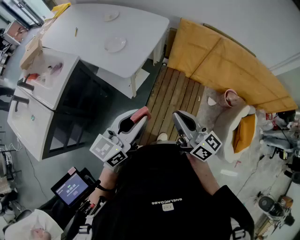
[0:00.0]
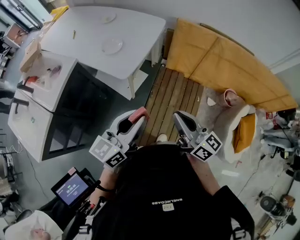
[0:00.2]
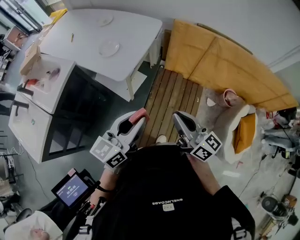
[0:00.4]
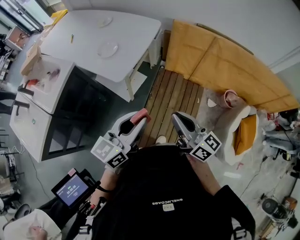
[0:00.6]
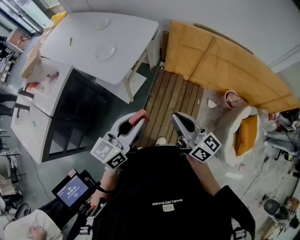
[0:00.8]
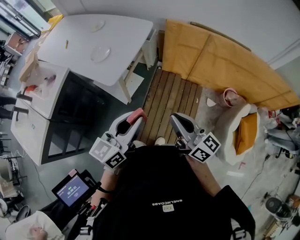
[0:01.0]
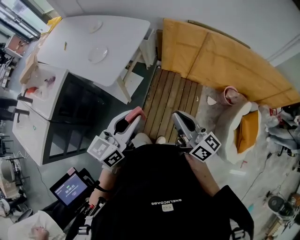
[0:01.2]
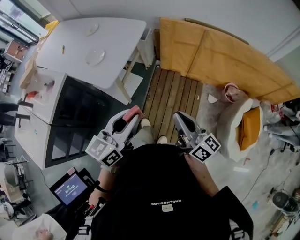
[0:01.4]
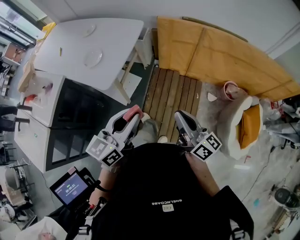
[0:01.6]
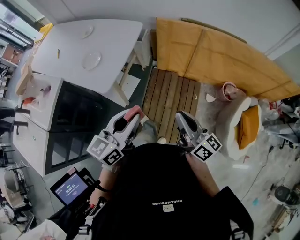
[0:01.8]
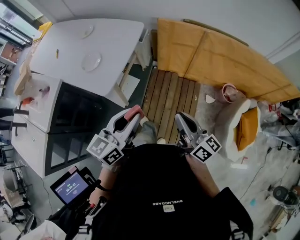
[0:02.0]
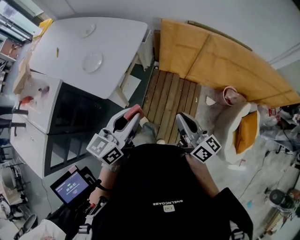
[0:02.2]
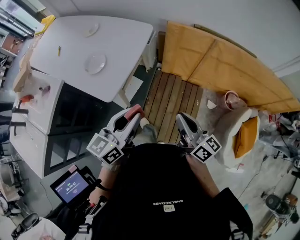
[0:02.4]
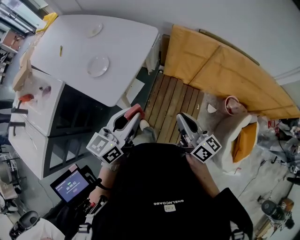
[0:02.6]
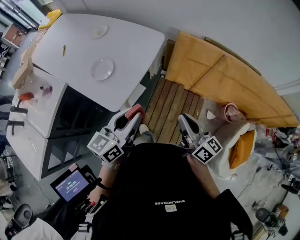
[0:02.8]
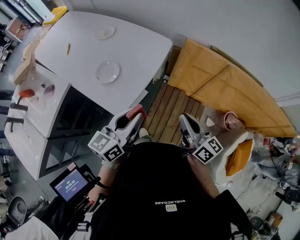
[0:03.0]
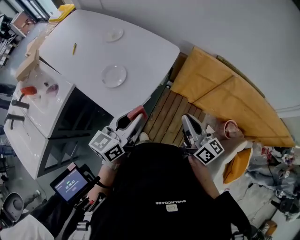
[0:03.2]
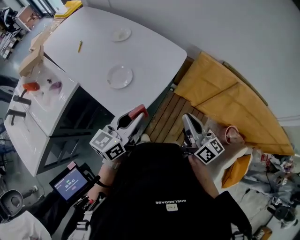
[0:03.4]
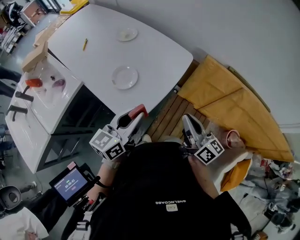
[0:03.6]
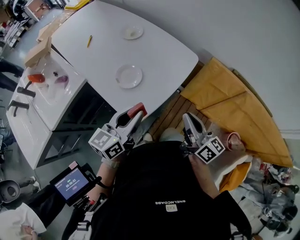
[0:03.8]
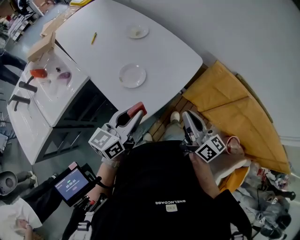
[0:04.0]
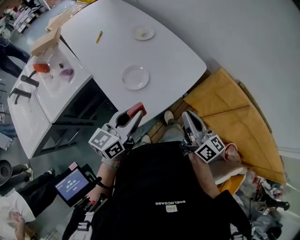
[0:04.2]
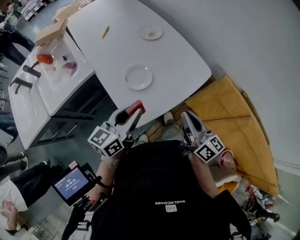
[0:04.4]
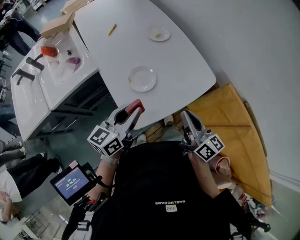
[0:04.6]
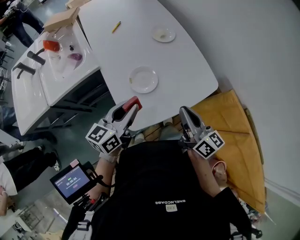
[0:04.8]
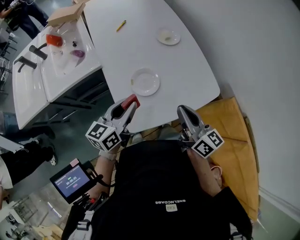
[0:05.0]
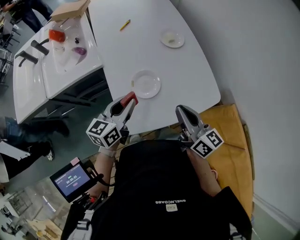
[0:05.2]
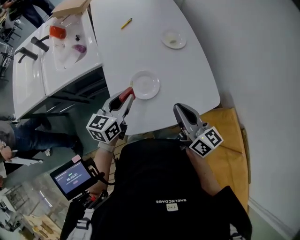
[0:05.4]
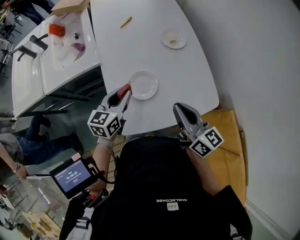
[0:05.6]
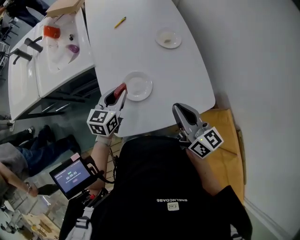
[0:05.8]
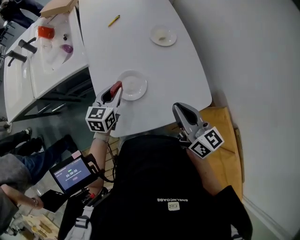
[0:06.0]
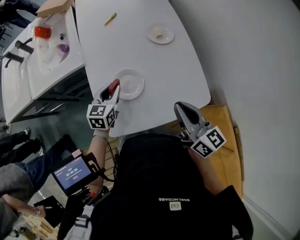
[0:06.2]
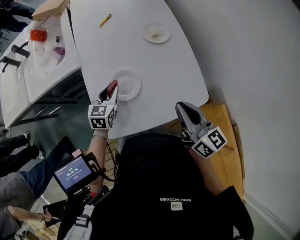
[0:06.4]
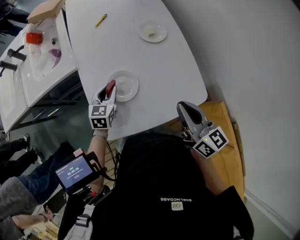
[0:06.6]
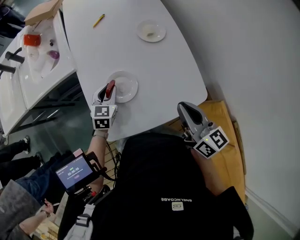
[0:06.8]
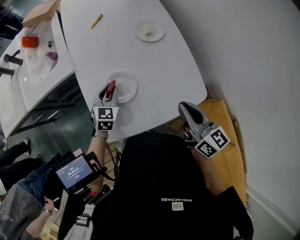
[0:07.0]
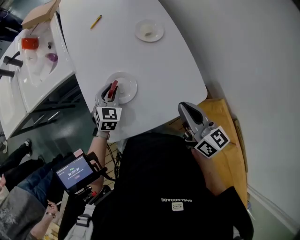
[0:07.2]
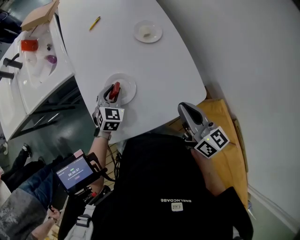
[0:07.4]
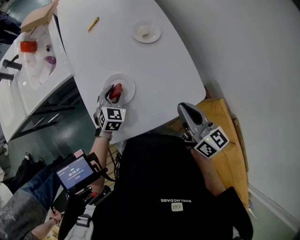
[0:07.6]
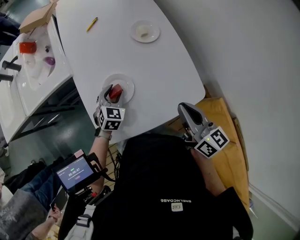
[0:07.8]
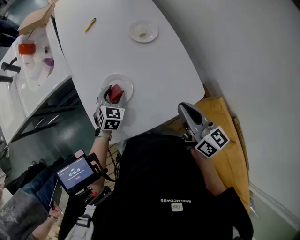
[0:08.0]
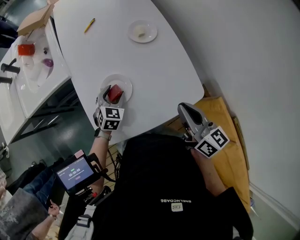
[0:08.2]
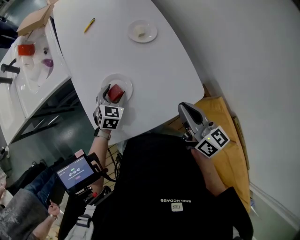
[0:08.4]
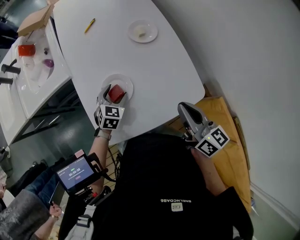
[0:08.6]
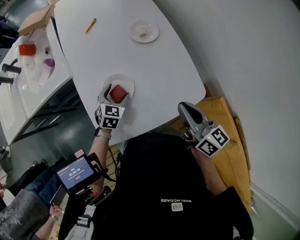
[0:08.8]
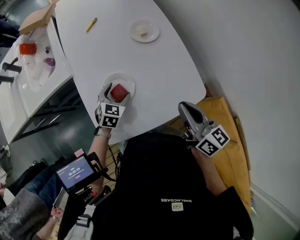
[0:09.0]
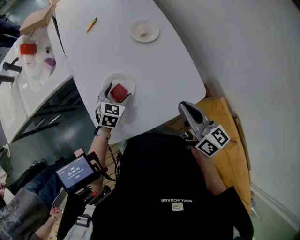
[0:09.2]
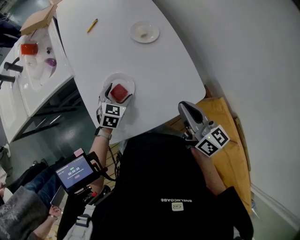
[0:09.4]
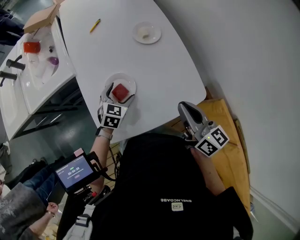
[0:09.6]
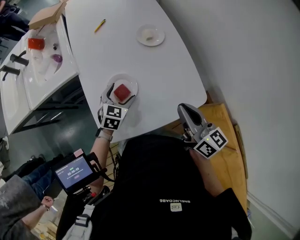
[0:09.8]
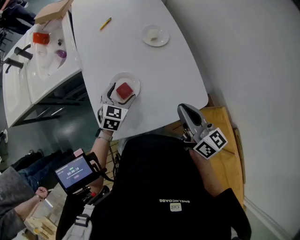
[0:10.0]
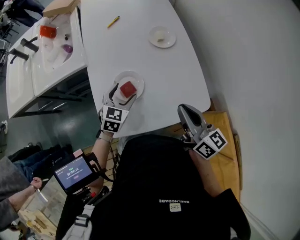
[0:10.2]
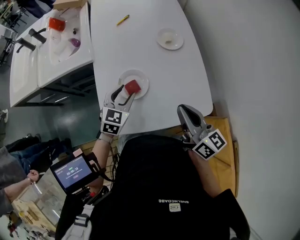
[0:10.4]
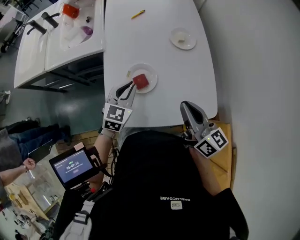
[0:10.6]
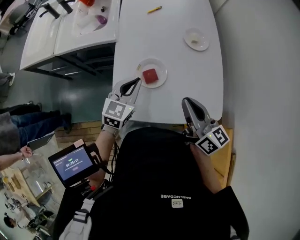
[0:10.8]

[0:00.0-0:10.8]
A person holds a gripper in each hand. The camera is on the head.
0:00.0 to 0:01.6: The left gripper moves to the right and forward, some 15 cm. Meanwhile the right gripper moves to the right and downward, about 15 cm.
0:01.6 to 0:03.0: The grippers both shift forward and to the left by approximately 20 cm.
0:03.0 to 0:04.6: The right gripper moves roughly 20 cm, and rotates approximately 30 degrees. The left gripper moves about 20 cm, and turns by about 30 degrees.
0:04.6 to 0:06.2: The left gripper goes approximately 15 cm to the left, downward and forward, and swivels some 20 degrees. Meanwhile the right gripper heads upward, covering some 10 cm, and rotates approximately 30 degrees.
0:06.2 to 0:07.8: The left gripper goes some 5 cm to the right, and turns by about 30 degrees, while the right gripper heads backward, covering approximately 5 cm.
0:07.8 to 0:09.2: The left gripper opens up.
0:09.2 to 0:10.8: The left gripper moves upward and to the left, roughly 15 cm, changes its angle by approximately 30 degrees, and closes; the right gripper heads to the left and forward, covering about 10 cm, and rotates approximately 20 degrees.

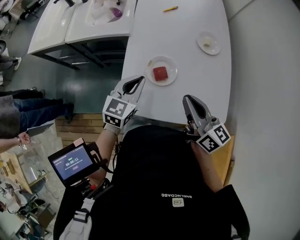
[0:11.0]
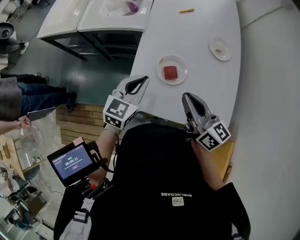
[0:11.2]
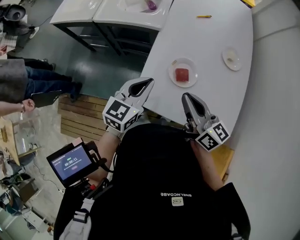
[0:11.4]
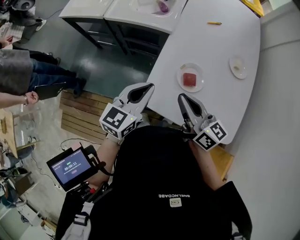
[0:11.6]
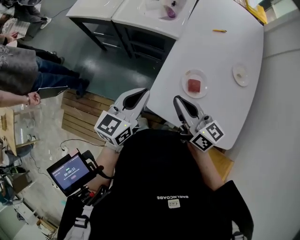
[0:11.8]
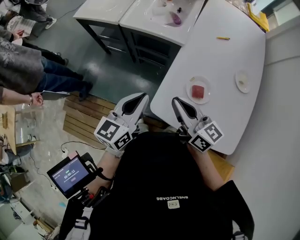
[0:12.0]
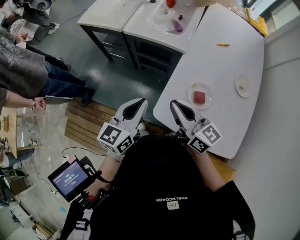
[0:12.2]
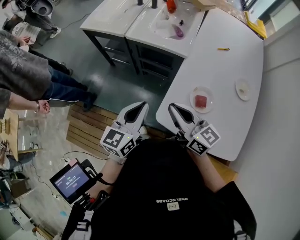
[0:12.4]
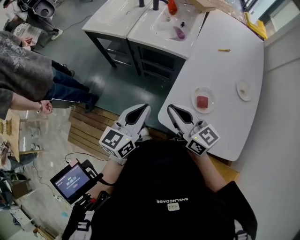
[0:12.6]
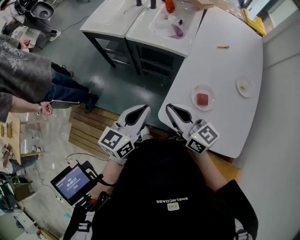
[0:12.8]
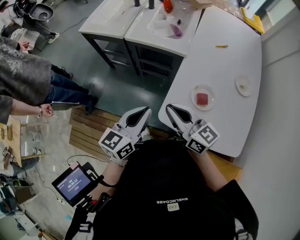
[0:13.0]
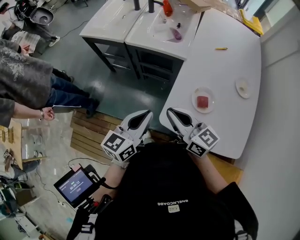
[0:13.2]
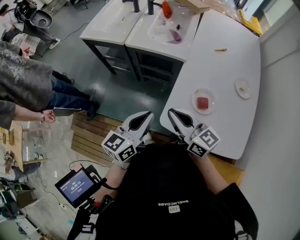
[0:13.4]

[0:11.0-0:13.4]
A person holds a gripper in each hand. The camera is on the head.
0:11.0 to 0:12.2: The two grippers go some 20 cm to the left. The right gripper turns by some 30 degrees; the left gripper changes its angle by about 30 degrees.
0:12.2 to 0:13.4: The grippers make only small movements.

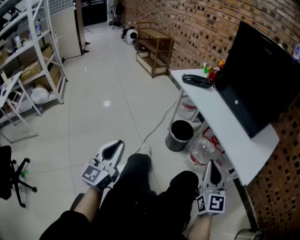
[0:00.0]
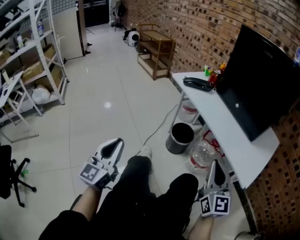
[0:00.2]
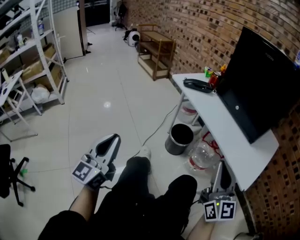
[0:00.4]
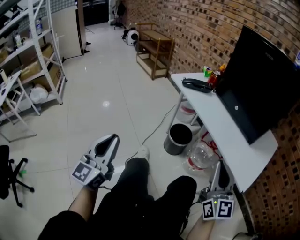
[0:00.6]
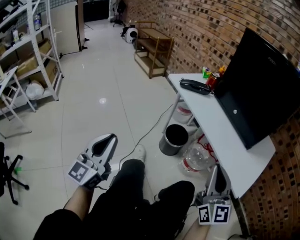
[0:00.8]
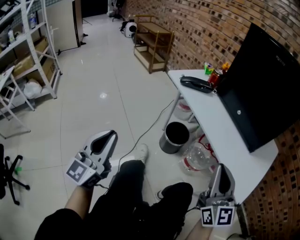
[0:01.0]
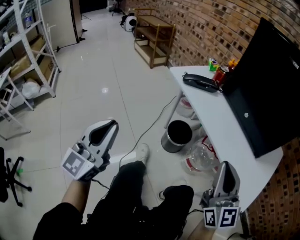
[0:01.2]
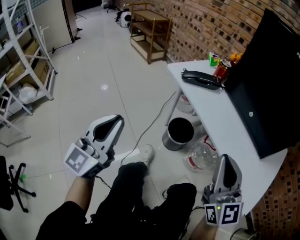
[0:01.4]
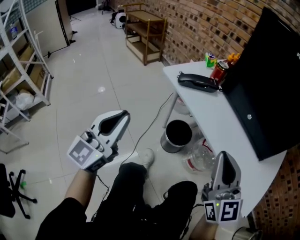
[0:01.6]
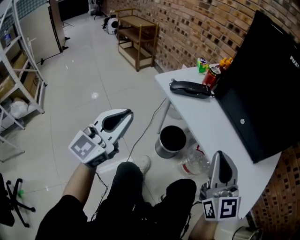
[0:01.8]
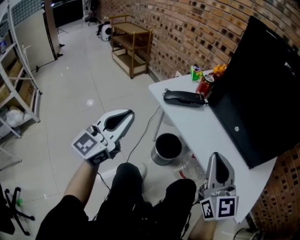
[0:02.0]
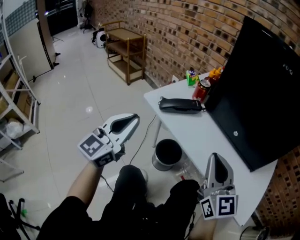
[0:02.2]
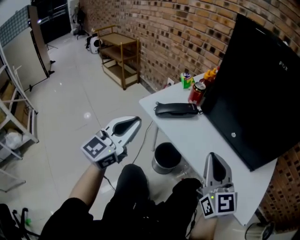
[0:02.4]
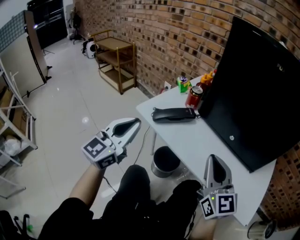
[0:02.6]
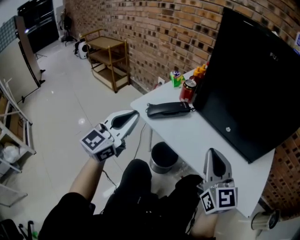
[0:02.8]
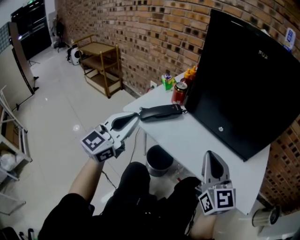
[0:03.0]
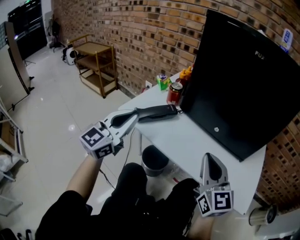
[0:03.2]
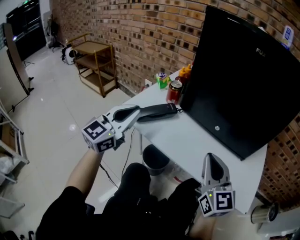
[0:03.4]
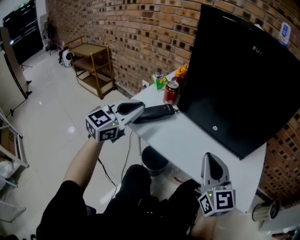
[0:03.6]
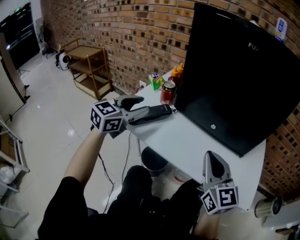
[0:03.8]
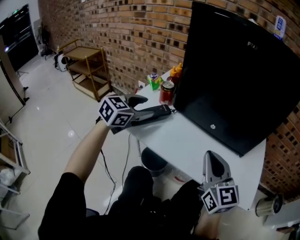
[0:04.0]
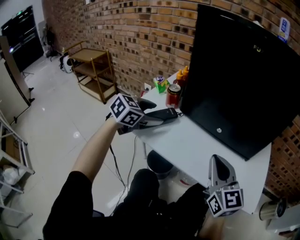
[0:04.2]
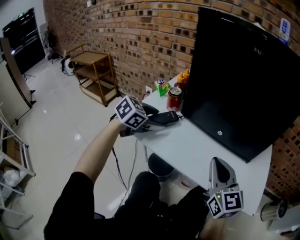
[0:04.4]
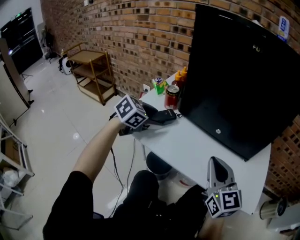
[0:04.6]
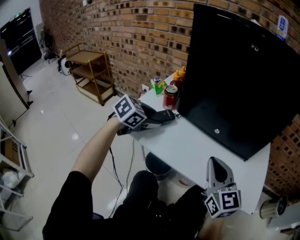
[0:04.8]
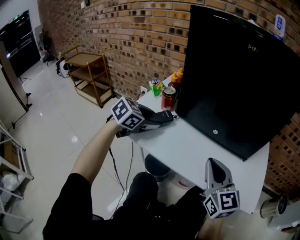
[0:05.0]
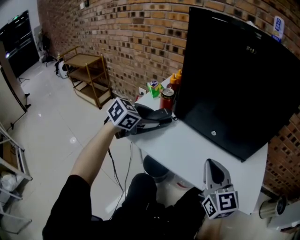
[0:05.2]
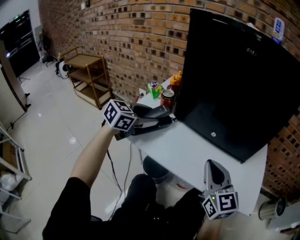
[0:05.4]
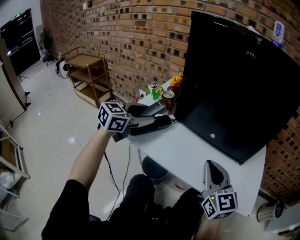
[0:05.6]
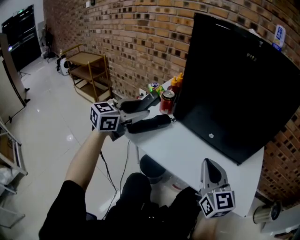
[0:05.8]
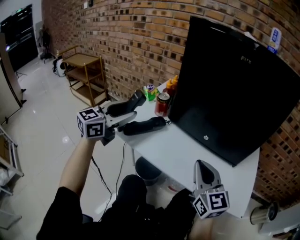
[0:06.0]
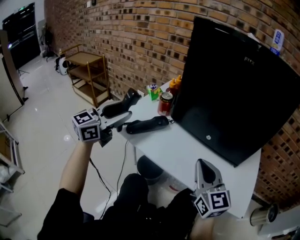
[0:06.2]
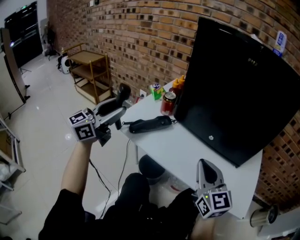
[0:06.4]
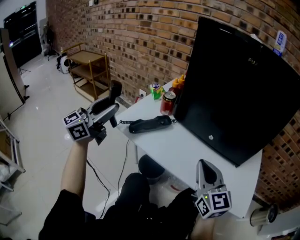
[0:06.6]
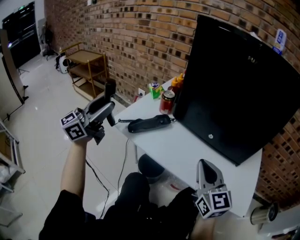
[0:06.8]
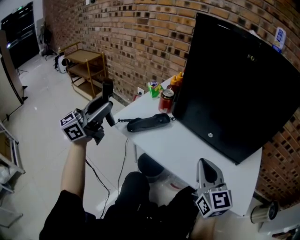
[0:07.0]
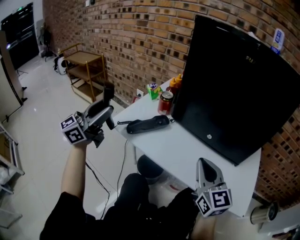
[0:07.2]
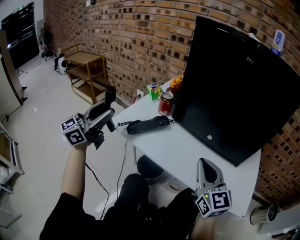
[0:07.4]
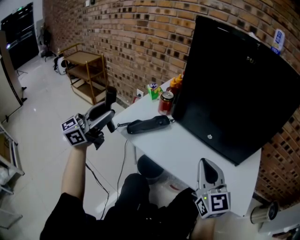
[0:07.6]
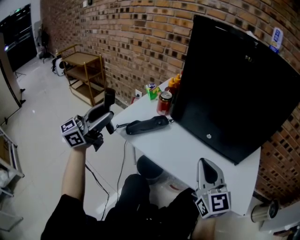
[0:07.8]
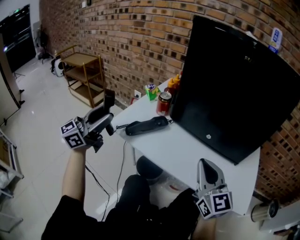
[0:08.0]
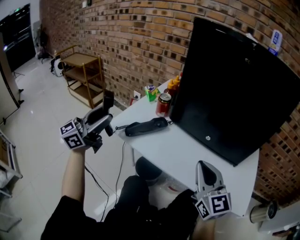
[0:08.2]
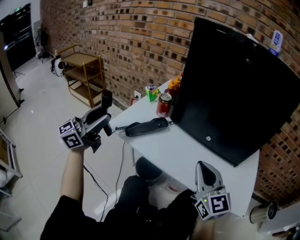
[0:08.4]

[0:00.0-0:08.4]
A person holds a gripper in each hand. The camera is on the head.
0:00.0 to 0:01.4: Both grippers move forward and upward, about 20 cm.
0:01.4 to 0:02.8: The right gripper shifts about 15 cm forward, while the left gripper travels forward by approximately 25 cm, and changes its angle by some 30 degrees.
0:02.8 to 0:04.2: The right gripper moves to the right, some 5 cm; the left gripper moves forward, to the right and downward, approximately 20 cm, tips its fingers downward by roughly 40 degrees, and opens up.
0:04.2 to 0:05.6: The grippers stay close to where they were, moving slightly.
0:05.6 to 0:07.0: The left gripper travels to the left, backward and upward by approximately 20 cm, and tilts its fingers about 40 degrees upward.
0:07.0 to 0:08.4: The grippers make only small movements.

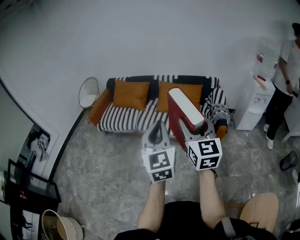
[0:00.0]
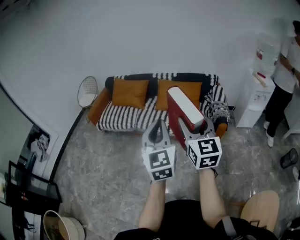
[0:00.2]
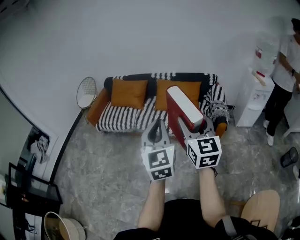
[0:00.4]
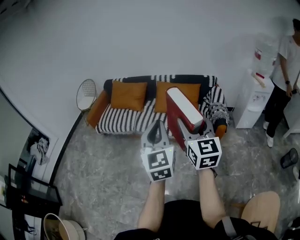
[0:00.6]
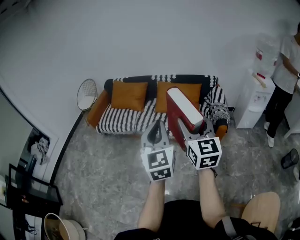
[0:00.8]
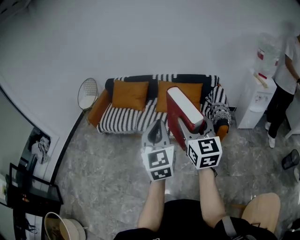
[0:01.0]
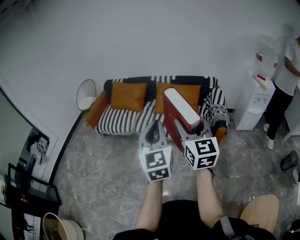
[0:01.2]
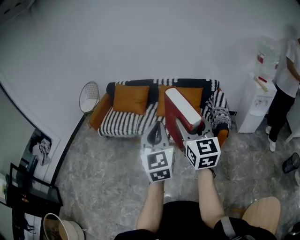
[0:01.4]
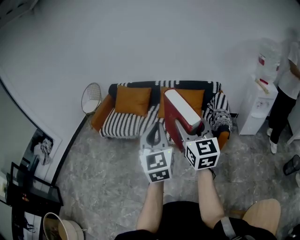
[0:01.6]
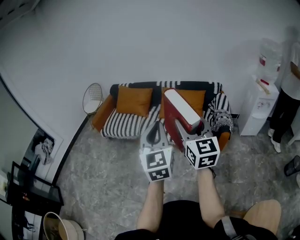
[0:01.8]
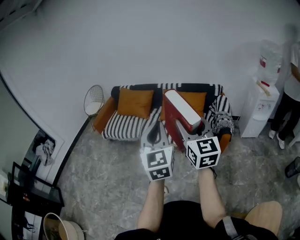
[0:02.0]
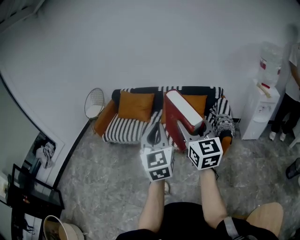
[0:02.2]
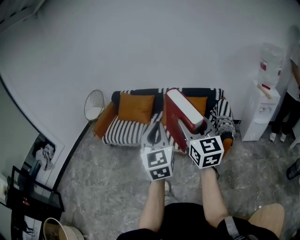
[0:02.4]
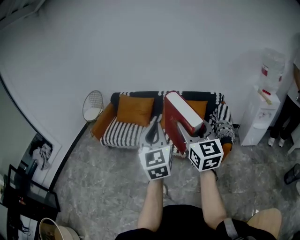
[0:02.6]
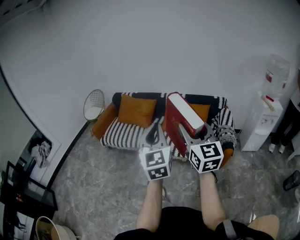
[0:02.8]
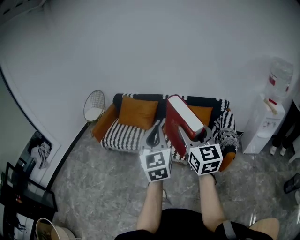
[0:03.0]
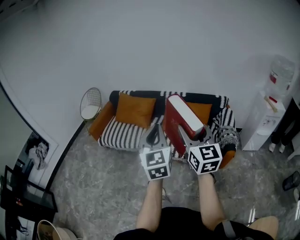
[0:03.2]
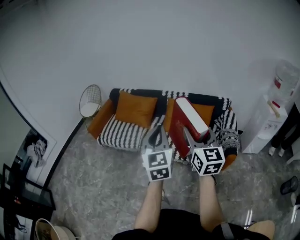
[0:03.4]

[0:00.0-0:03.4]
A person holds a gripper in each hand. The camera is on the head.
0:00.0 to 0:01.6: The grippers stay close to where they were, moving slightly.
0:01.6 to 0:03.4: The two grippers go roughly 20 cm forward.
